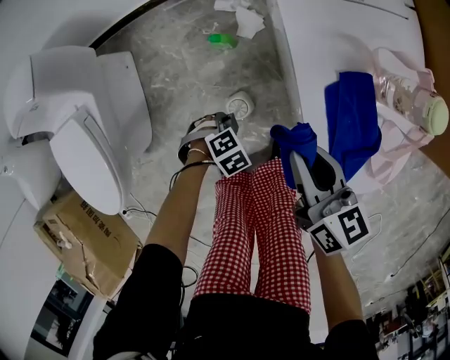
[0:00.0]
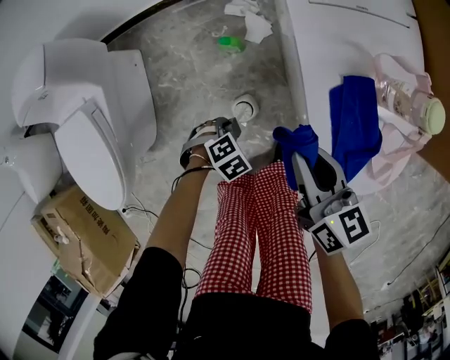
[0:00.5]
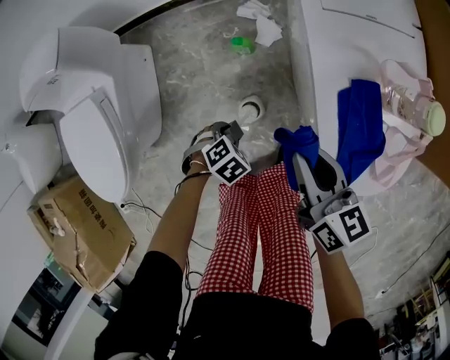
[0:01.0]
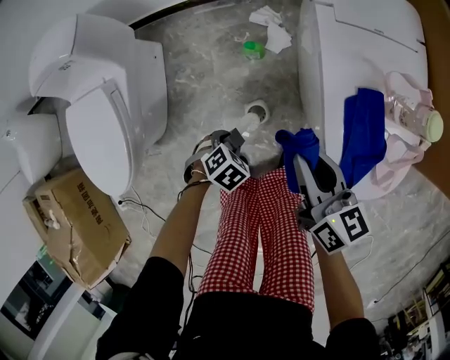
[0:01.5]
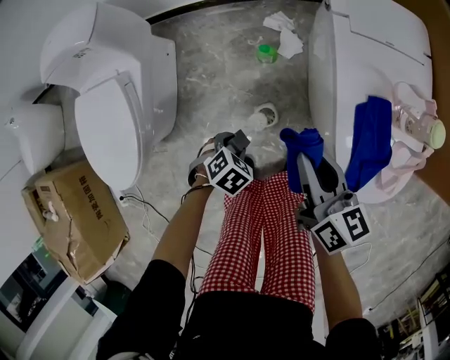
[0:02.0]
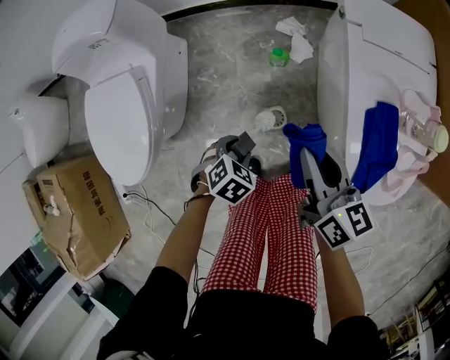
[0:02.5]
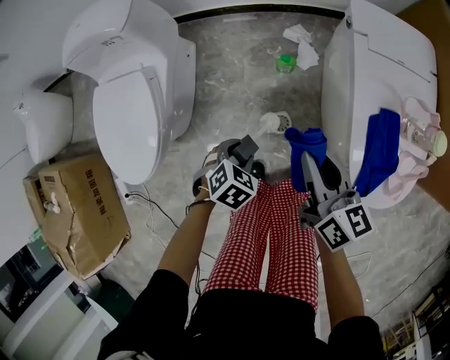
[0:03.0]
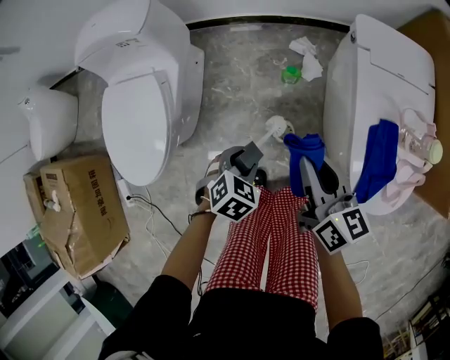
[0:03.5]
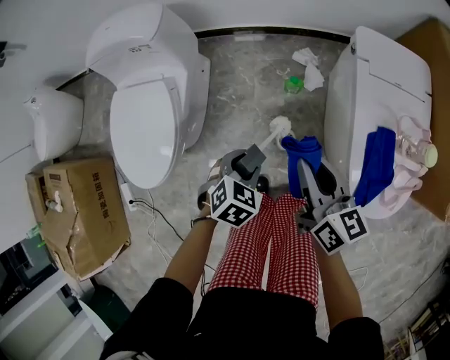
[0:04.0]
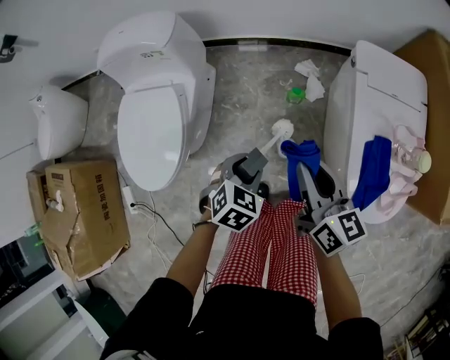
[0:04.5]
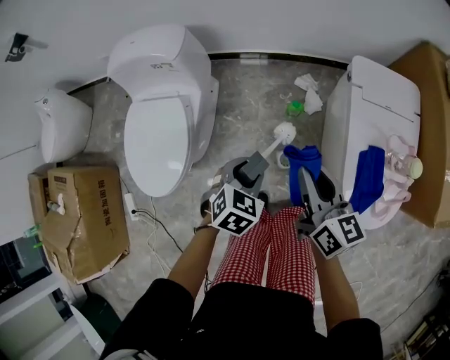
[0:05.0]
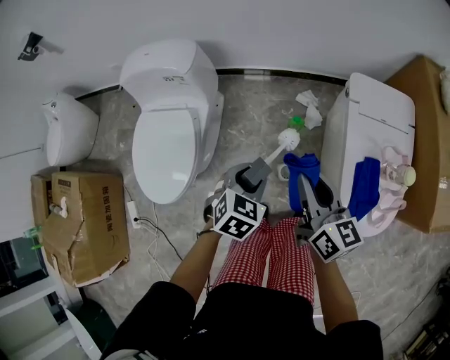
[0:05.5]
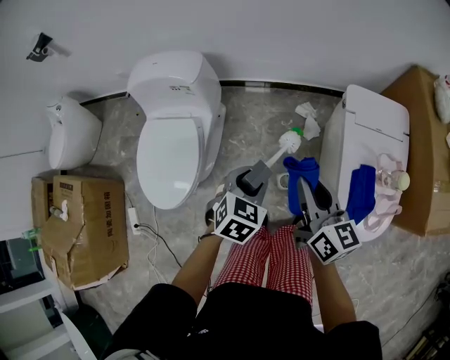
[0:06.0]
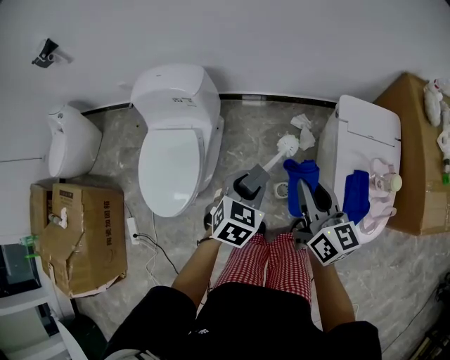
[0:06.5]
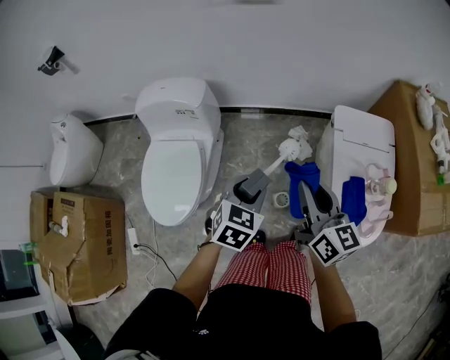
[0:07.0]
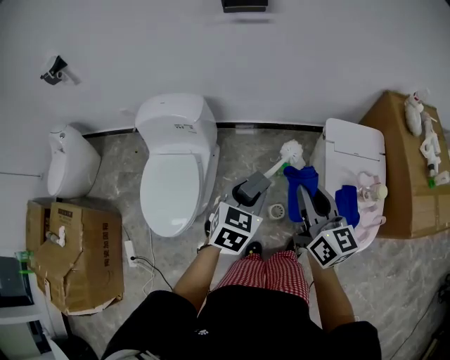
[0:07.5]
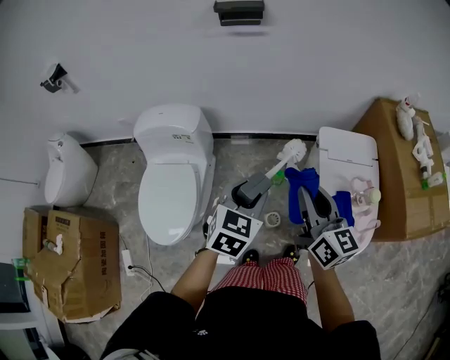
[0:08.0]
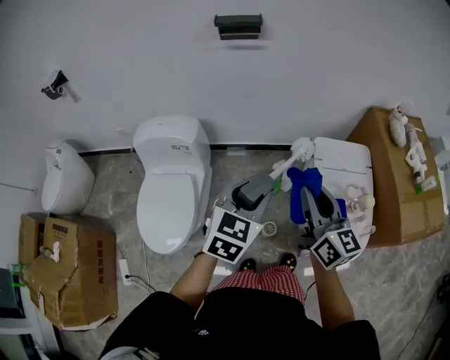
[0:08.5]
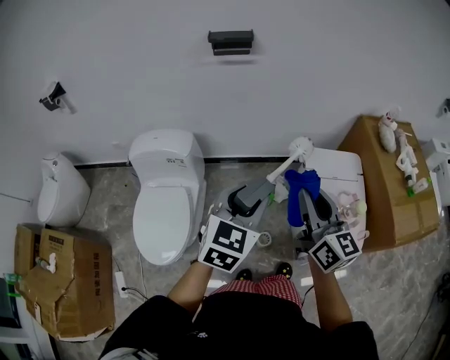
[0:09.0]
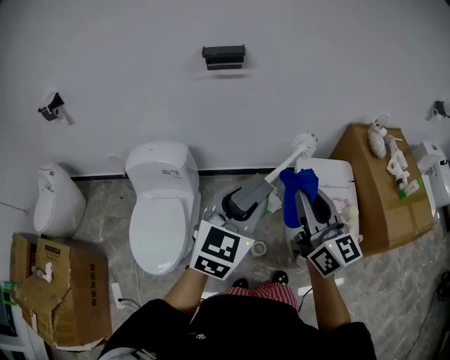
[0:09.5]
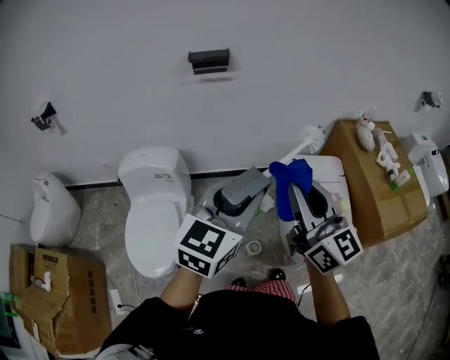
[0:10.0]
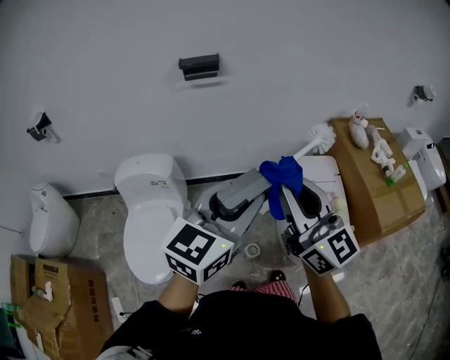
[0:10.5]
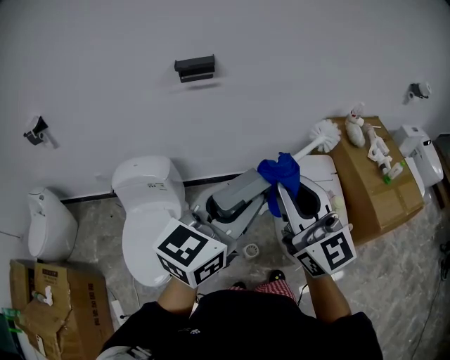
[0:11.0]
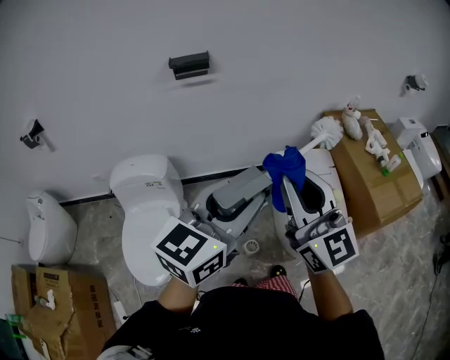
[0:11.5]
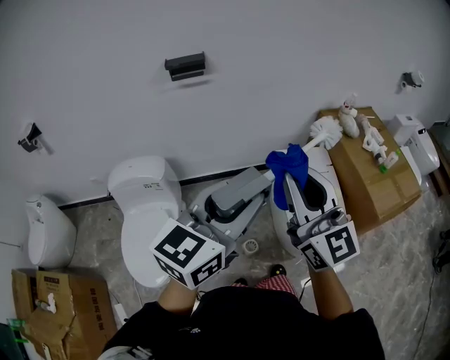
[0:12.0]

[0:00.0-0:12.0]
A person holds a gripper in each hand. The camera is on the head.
0:00.0 to 0:02.0: The left gripper heads upward, covering some 10 cm, and turns by some 30 degrees; the right gripper changes place by some 10 cm.
0:02.0 to 0:04.0: The right gripper moves approximately 10 cm; the left gripper is displaced upward by approximately 15 cm, and swivels some 20 degrees.
0:04.0 to 0:06.0: The two grippers go about 15 cm upward.
0:06.0 to 0:08.0: The grippers both shift upward by some 15 cm.
0:08.0 to 0:10.0: The grippers both shift upward by roughly 20 cm. The right gripper swivels approximately 20 degrees, while the left gripper changes its angle by about 30 degrees.
0:10.0 to 0:12.0: The left gripper ends up some 5 cm from where it was.

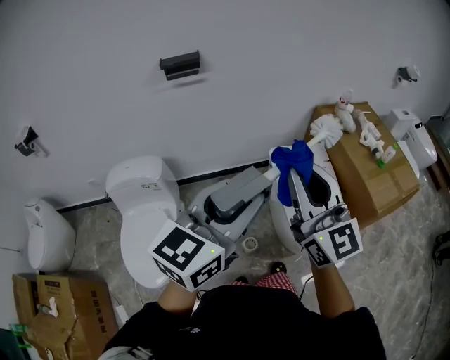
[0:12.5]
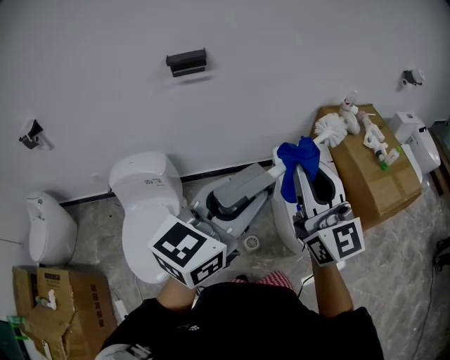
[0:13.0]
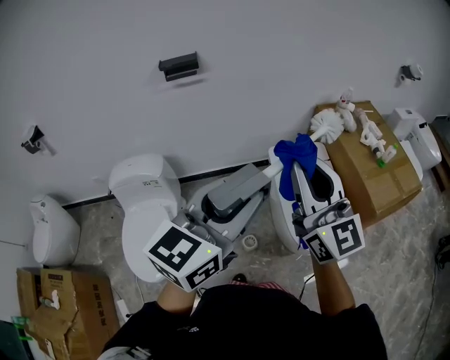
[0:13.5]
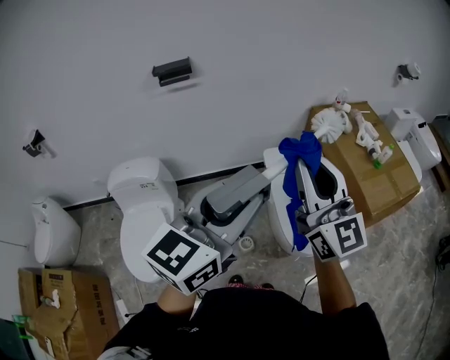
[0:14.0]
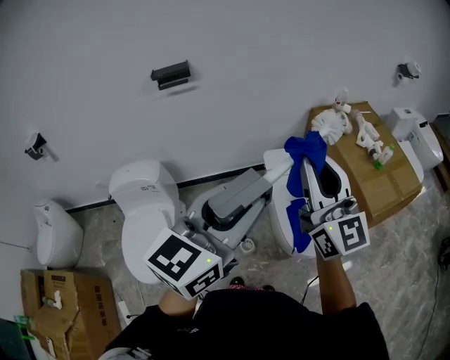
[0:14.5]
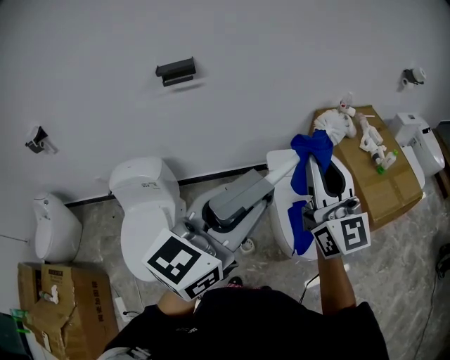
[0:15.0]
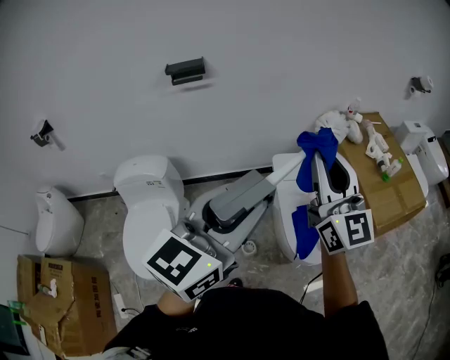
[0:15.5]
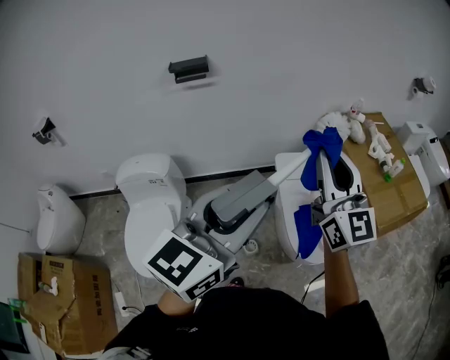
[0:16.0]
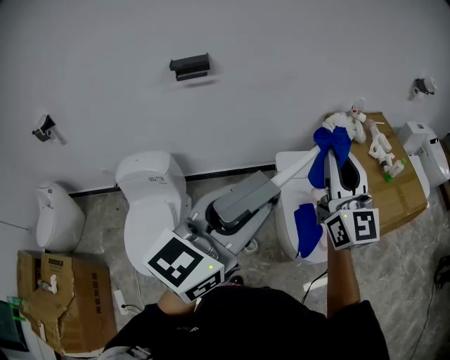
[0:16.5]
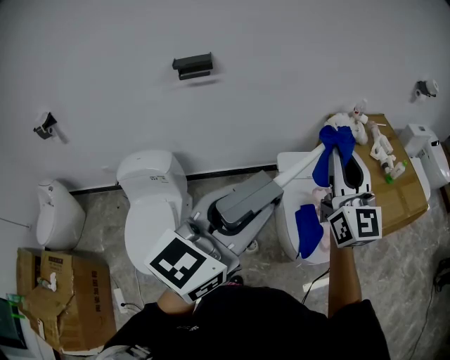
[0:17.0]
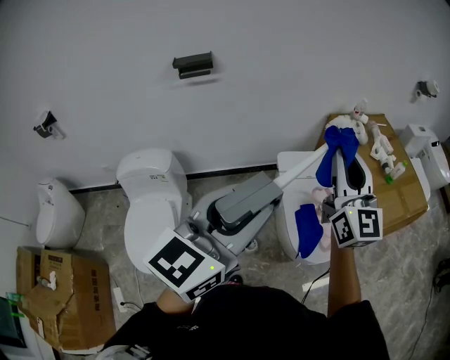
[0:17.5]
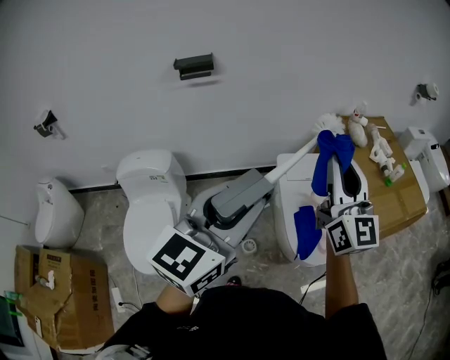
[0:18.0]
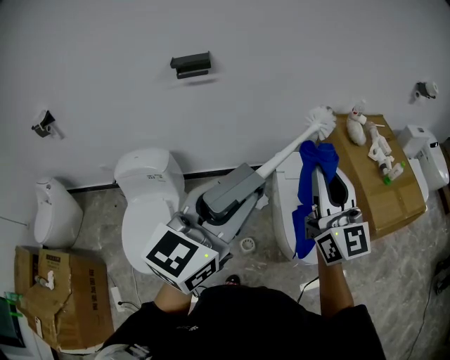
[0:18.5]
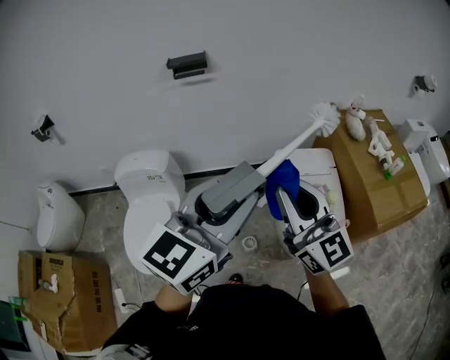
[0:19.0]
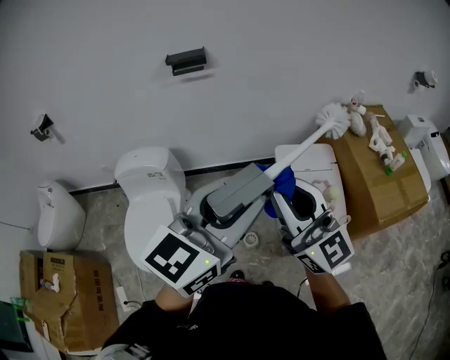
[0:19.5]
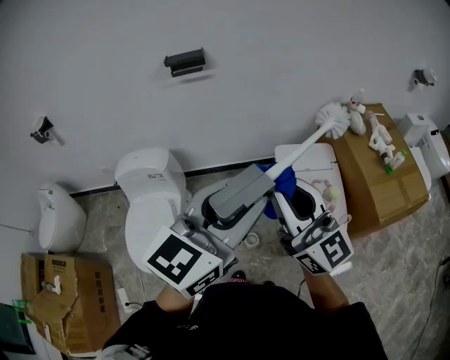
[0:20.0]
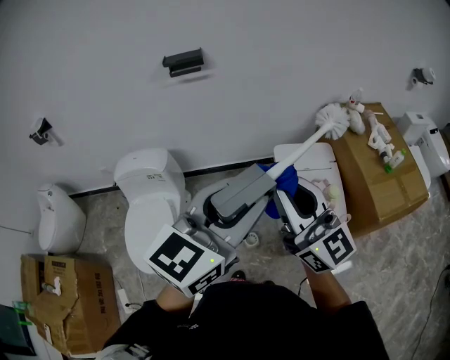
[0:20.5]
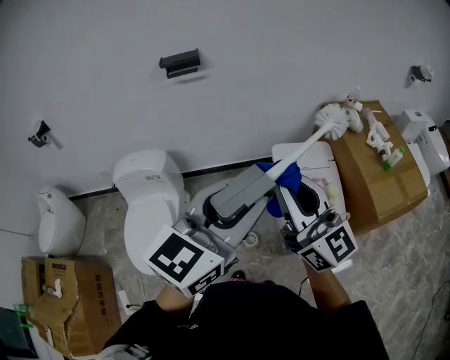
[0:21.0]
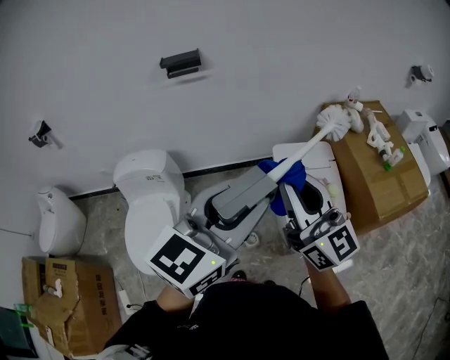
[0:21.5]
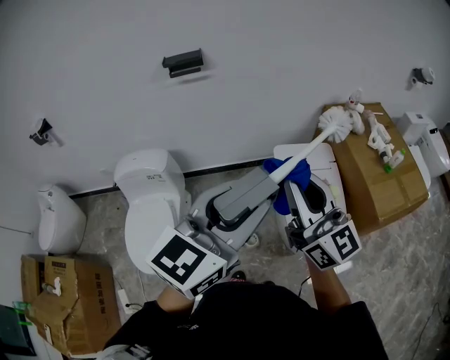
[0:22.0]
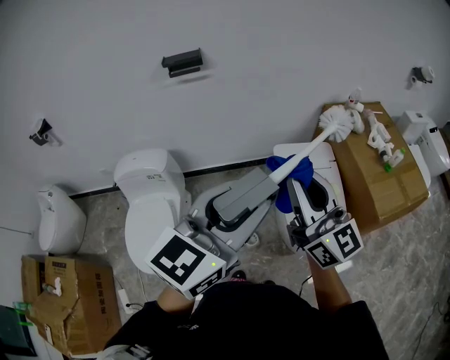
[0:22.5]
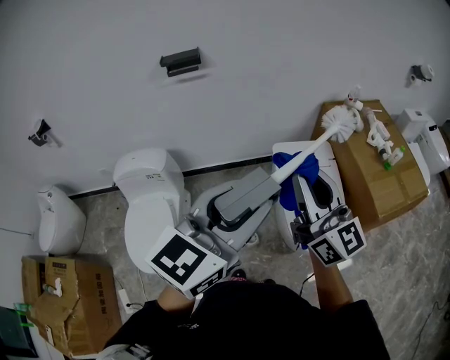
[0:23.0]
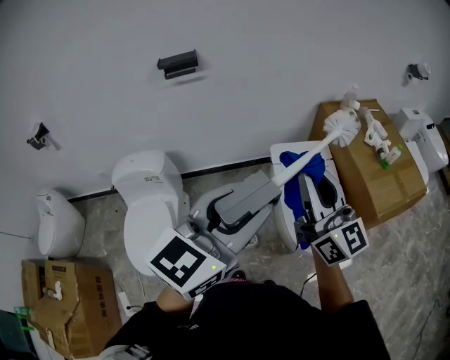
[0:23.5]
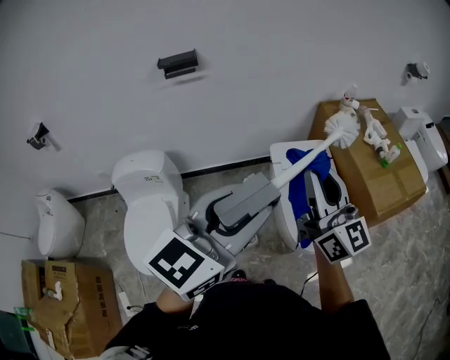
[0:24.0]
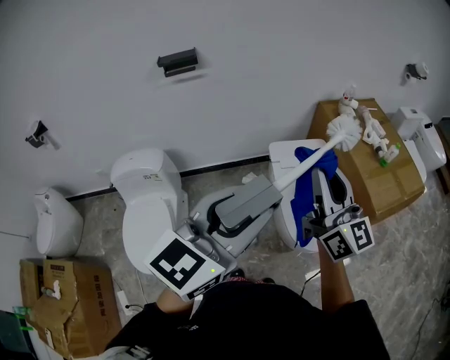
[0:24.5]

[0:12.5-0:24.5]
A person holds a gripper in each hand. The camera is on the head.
0:12.5 to 0:14.5: Both grippers move to the right, roughly 10 cm.
0:14.5 to 0:16.5: The right gripper travels forward by about 5 cm.
0:16.5 to 0:18.5: The grippers stay close to where they were, moving slightly.
0:18.5 to 0:20.5: The right gripper is displaced to the left by about 10 cm, and changes its angle by roughly 20 degrees.
0:20.5 to 0:22.5: The grippers stay close to where they were, moving slightly.
0:22.5 to 0:24.5: The right gripper moves to the right, some 5 cm.

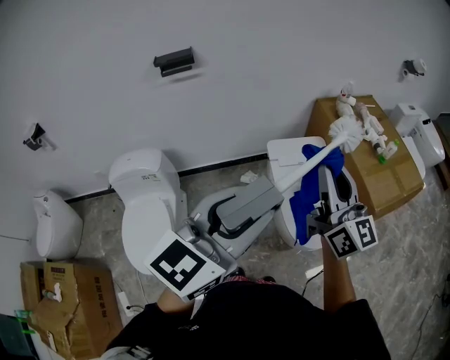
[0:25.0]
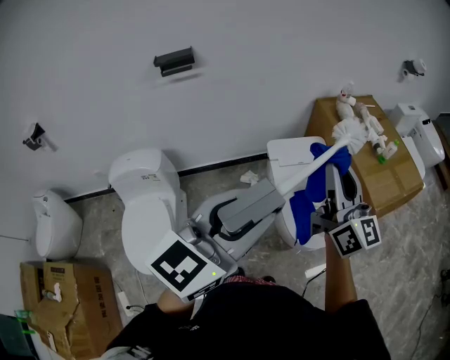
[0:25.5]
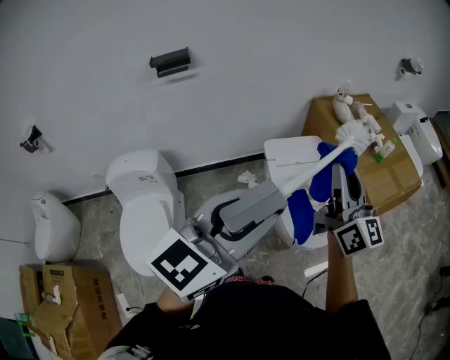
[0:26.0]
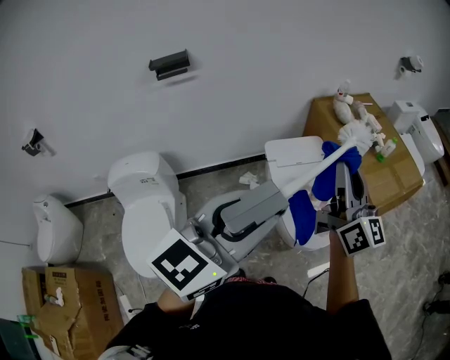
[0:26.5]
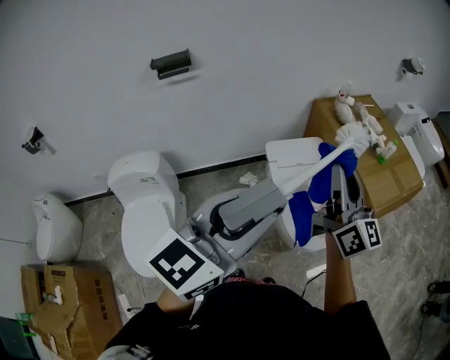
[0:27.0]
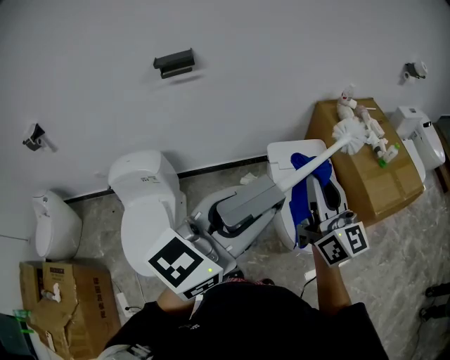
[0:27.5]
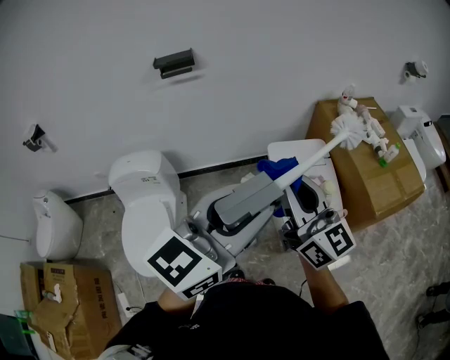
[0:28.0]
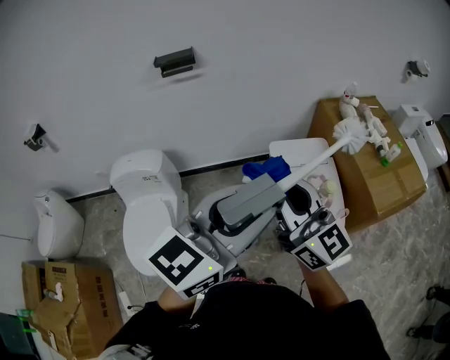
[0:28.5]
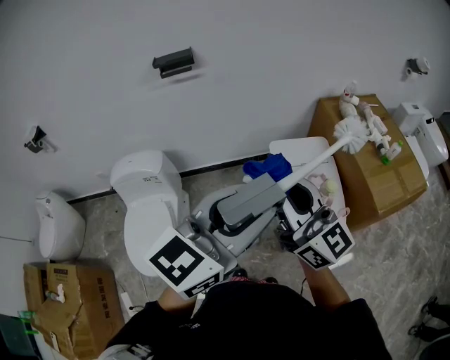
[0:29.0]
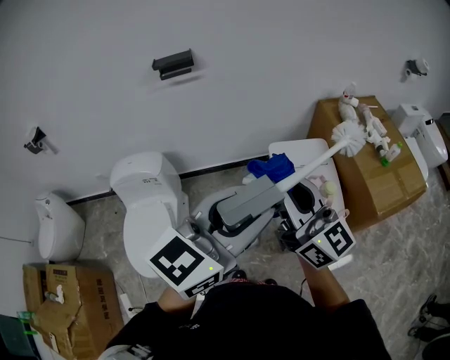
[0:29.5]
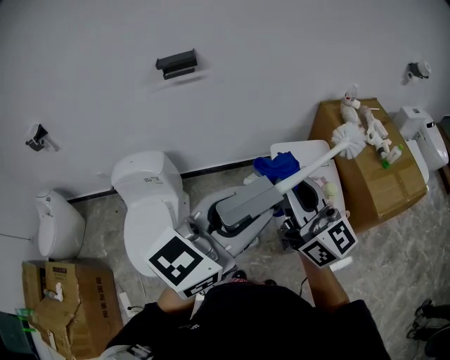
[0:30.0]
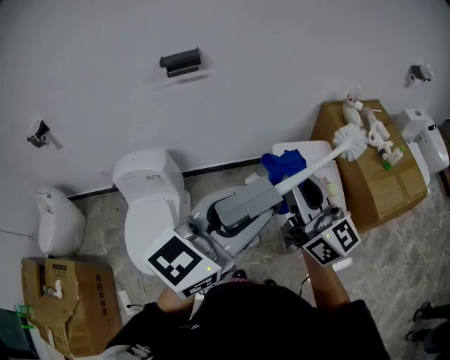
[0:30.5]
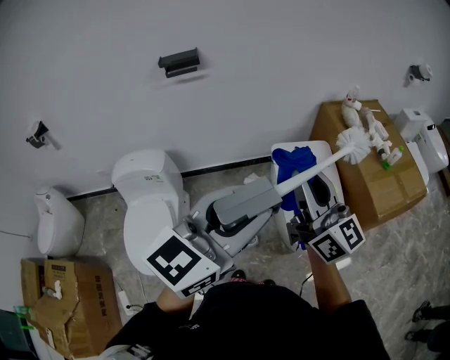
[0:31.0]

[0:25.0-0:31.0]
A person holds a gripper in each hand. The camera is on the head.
0:25.0 to 0:27.0: The grippers stay close to where they were, moving slightly.
0:27.0 to 0:29.0: The right gripper goes approximately 15 cm to the left and backward, and turns by approximately 30 degrees.
0:29.0 to 0:31.0: The right gripper changes place by roughly 5 cm.
